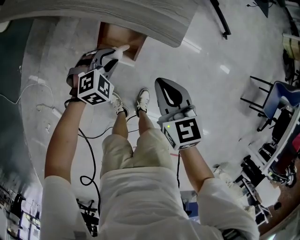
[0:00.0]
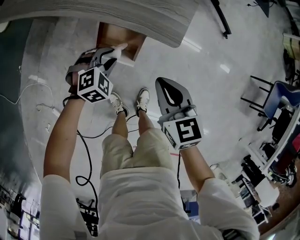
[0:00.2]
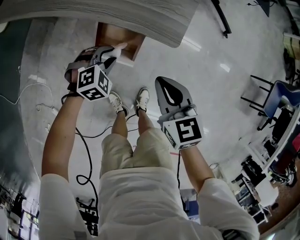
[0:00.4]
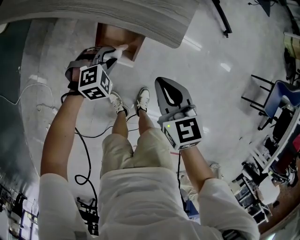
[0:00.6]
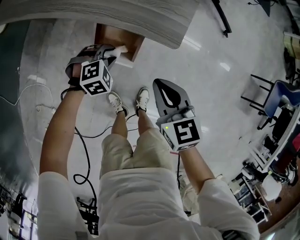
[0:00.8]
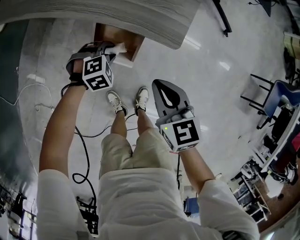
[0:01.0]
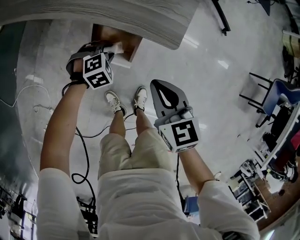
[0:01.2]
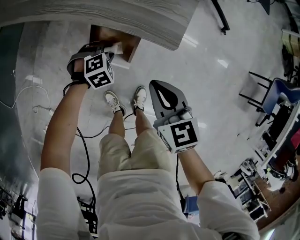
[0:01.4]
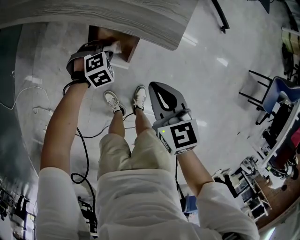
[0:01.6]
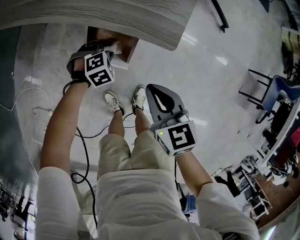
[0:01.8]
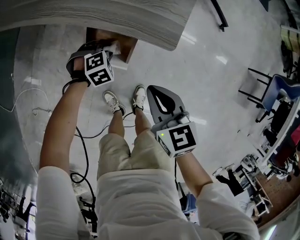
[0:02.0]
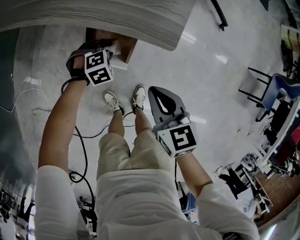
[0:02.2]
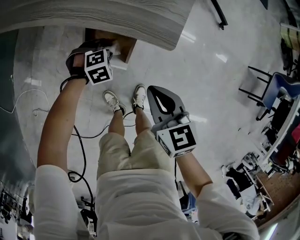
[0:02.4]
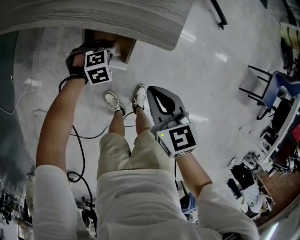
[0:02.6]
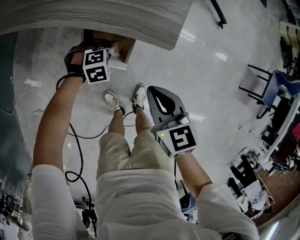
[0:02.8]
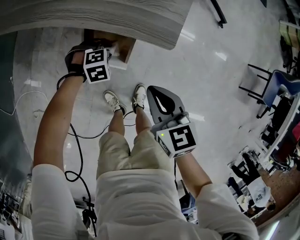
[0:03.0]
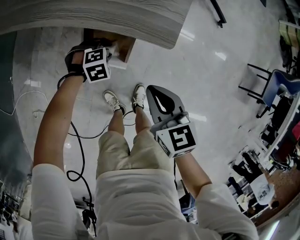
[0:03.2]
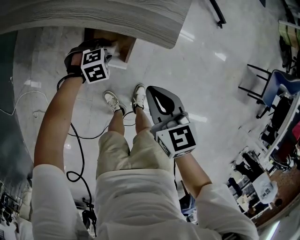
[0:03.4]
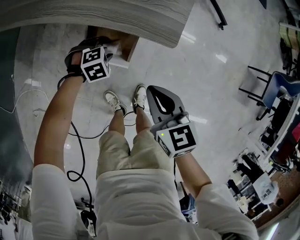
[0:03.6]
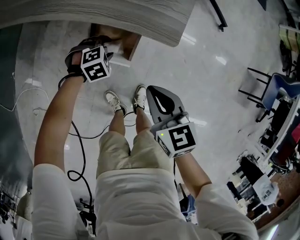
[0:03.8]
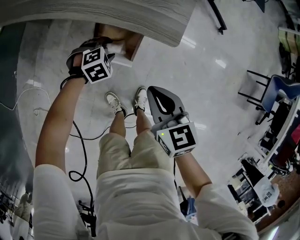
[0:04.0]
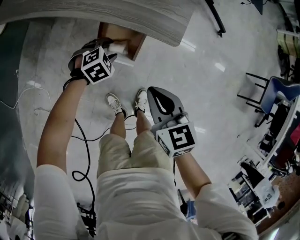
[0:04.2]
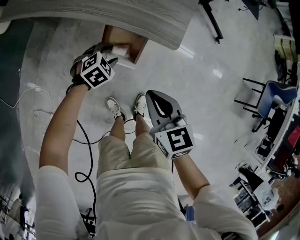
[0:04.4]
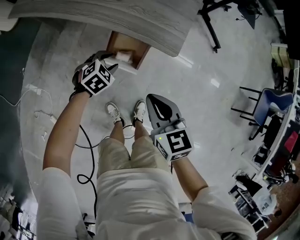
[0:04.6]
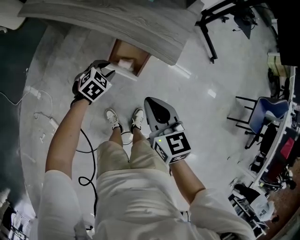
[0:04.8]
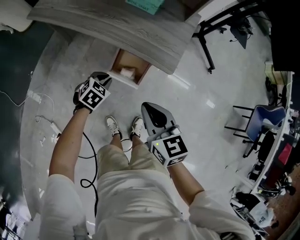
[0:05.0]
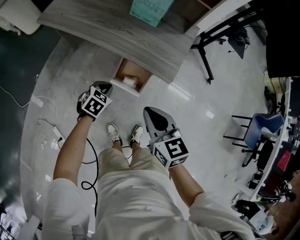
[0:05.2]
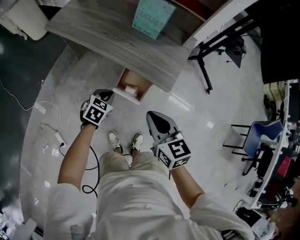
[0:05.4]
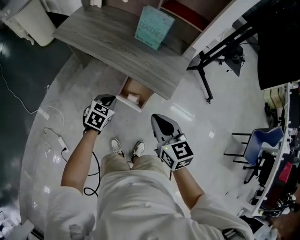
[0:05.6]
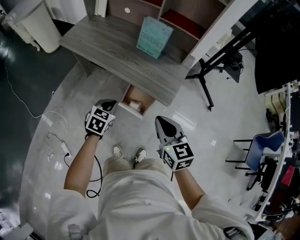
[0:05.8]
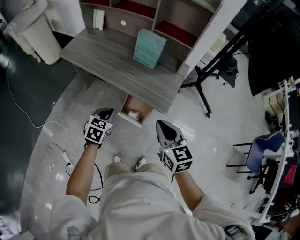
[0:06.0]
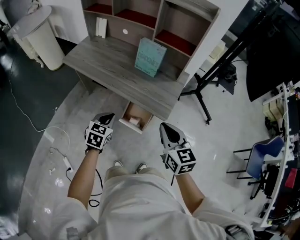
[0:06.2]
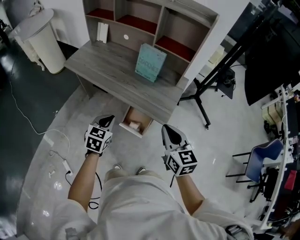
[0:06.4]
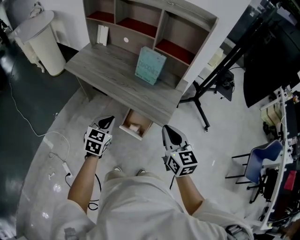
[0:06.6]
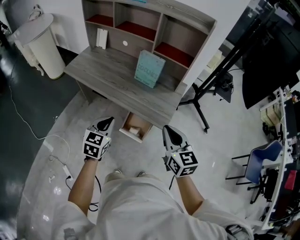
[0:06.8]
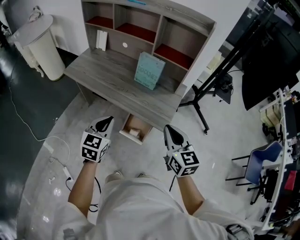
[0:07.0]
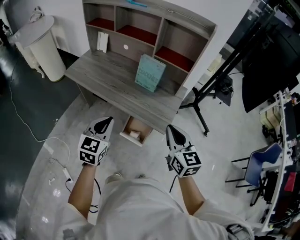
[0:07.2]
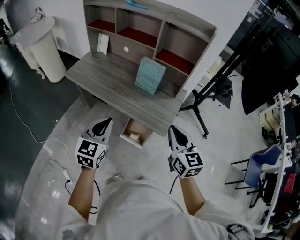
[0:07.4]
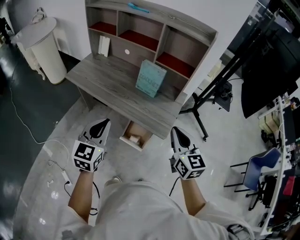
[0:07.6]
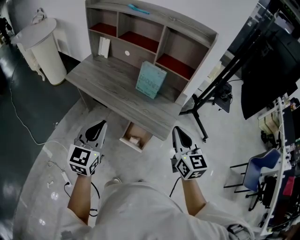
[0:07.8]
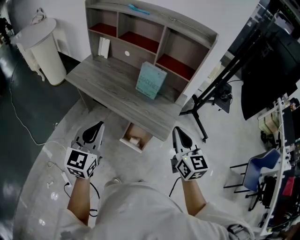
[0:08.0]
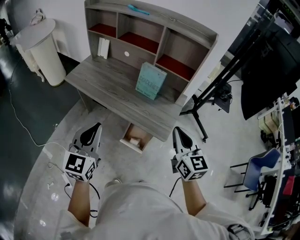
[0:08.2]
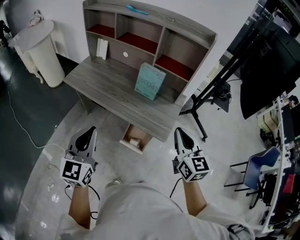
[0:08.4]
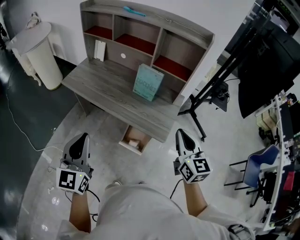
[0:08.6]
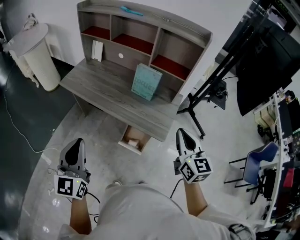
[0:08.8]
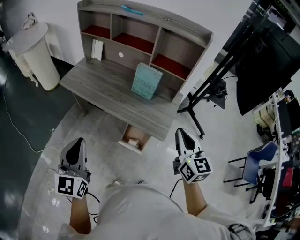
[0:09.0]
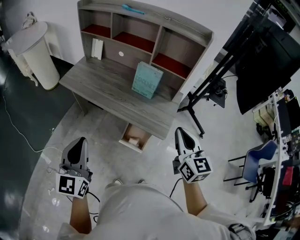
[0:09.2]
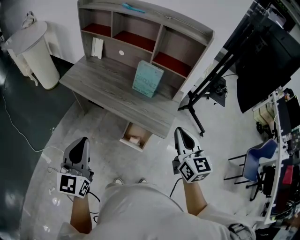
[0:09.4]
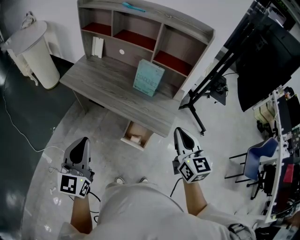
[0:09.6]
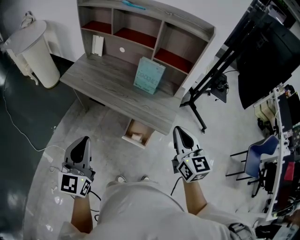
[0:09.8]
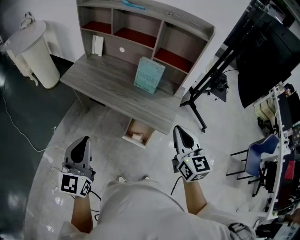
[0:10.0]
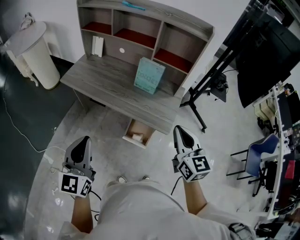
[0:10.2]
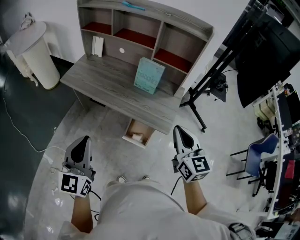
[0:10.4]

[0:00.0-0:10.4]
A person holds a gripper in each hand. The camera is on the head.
0.0 to 1.4 s: The left gripper moves downward, some 10 cm.
1.4 to 3.0 s: There are only small adjustments of the grippers.
3.0 to 4.4 s: The left gripper is displaced upward by some 10 cm, and turns by about 30 degrees. Meanwhile the right gripper shifts some 5 cm upward.
4.4 to 6.0 s: The two grippers go some 25 cm upward. The left gripper turns by roughly 50 degrees, and closes its fingers.
6.0 to 7.4 s: The left gripper moves upward, roughly 20 cm, and turns by about 20 degrees, while the right gripper goes some 10 cm upward and forward.
7.4 to 9.0 s: The left gripper is displaced to the left, upward and backward by some 15 cm.
9.0 to 10.4 s: The grippers stay close to where they were, moving slightly.

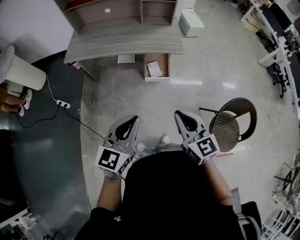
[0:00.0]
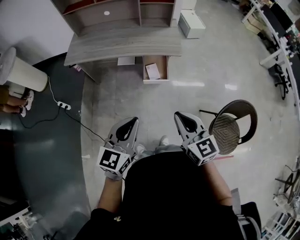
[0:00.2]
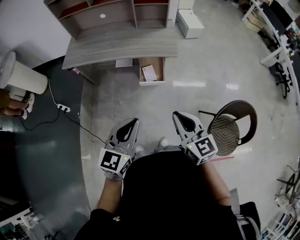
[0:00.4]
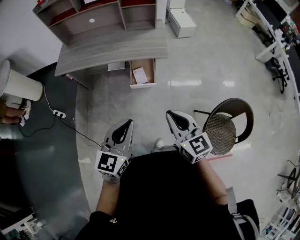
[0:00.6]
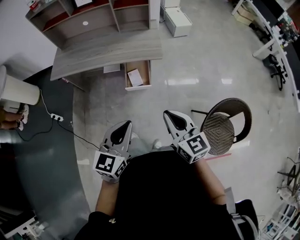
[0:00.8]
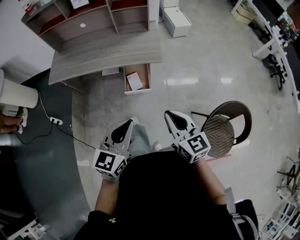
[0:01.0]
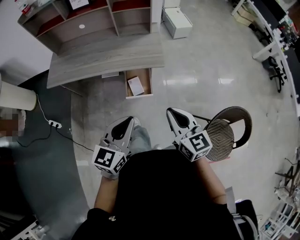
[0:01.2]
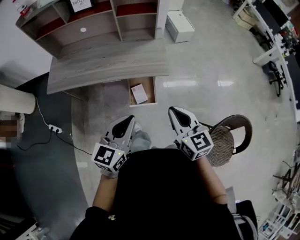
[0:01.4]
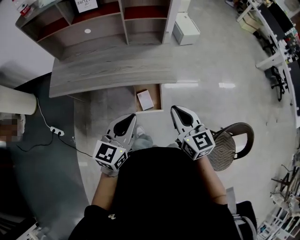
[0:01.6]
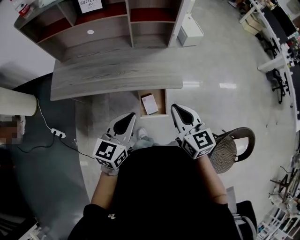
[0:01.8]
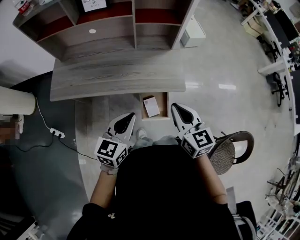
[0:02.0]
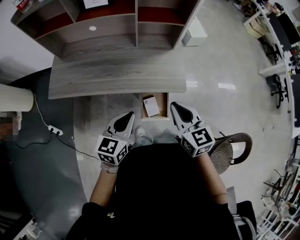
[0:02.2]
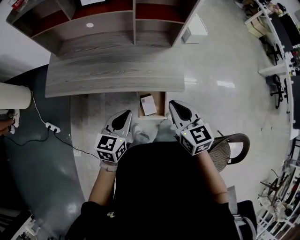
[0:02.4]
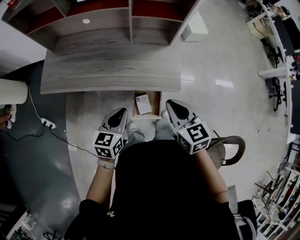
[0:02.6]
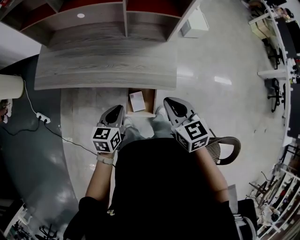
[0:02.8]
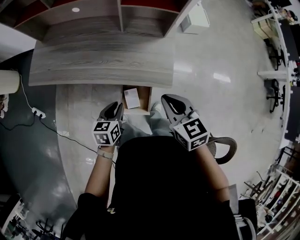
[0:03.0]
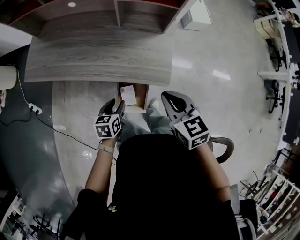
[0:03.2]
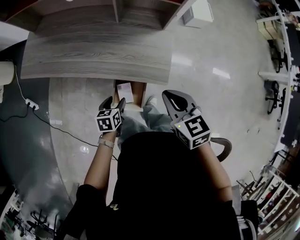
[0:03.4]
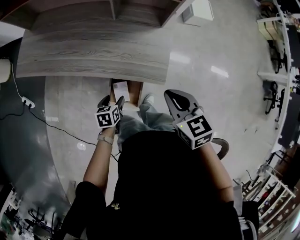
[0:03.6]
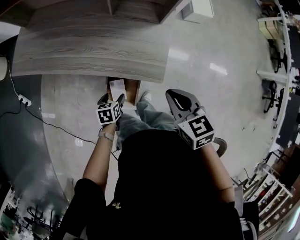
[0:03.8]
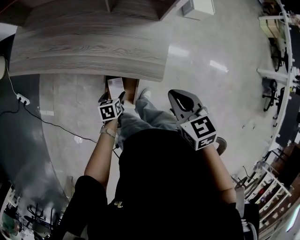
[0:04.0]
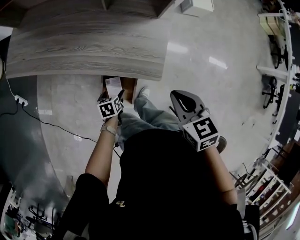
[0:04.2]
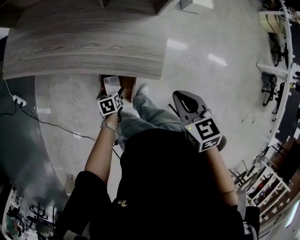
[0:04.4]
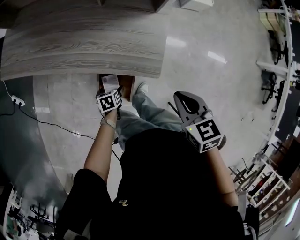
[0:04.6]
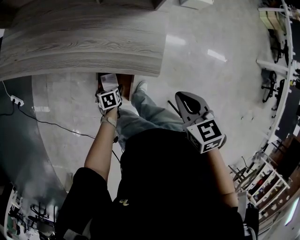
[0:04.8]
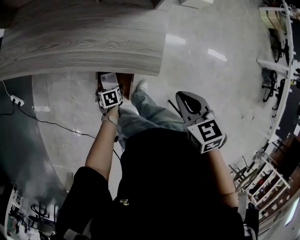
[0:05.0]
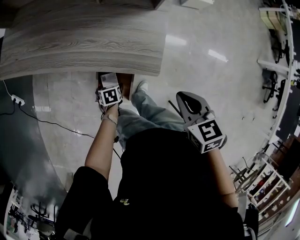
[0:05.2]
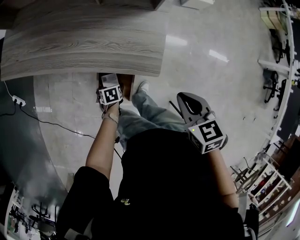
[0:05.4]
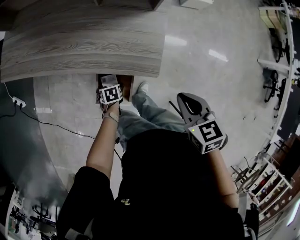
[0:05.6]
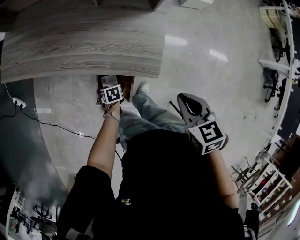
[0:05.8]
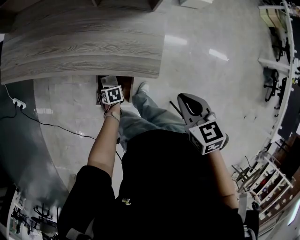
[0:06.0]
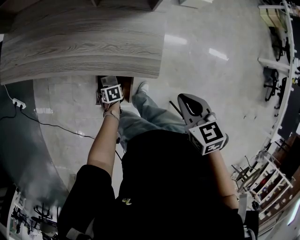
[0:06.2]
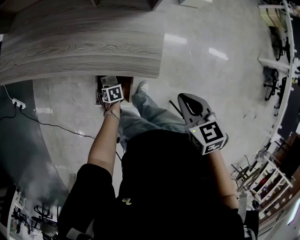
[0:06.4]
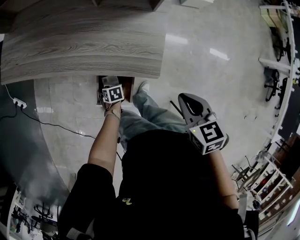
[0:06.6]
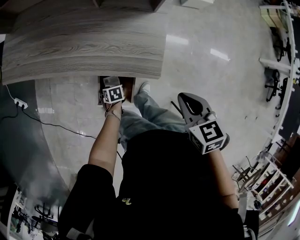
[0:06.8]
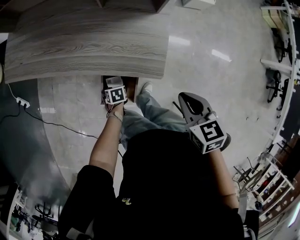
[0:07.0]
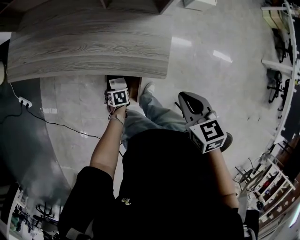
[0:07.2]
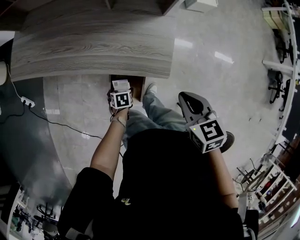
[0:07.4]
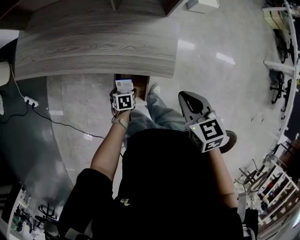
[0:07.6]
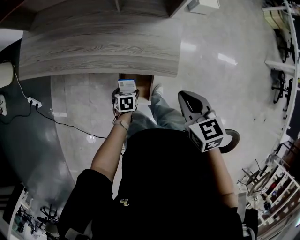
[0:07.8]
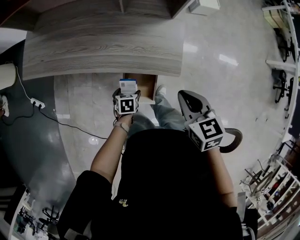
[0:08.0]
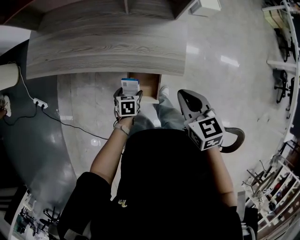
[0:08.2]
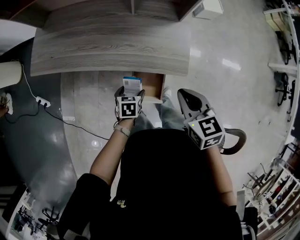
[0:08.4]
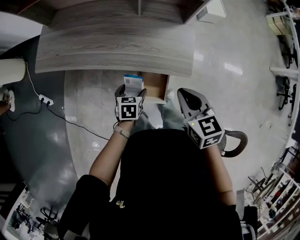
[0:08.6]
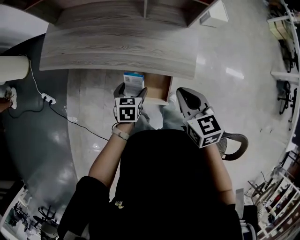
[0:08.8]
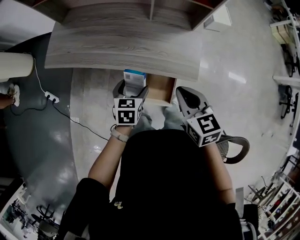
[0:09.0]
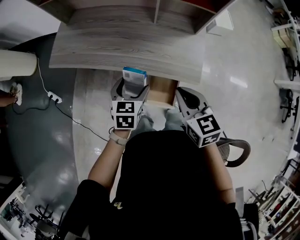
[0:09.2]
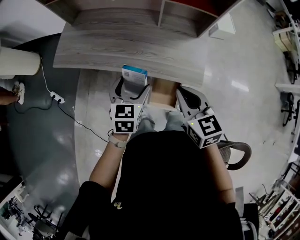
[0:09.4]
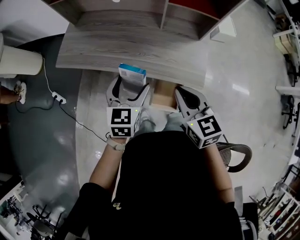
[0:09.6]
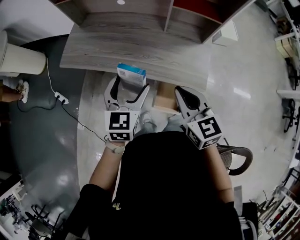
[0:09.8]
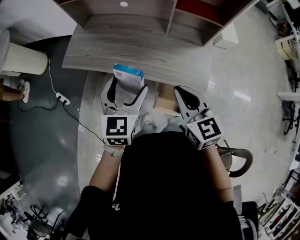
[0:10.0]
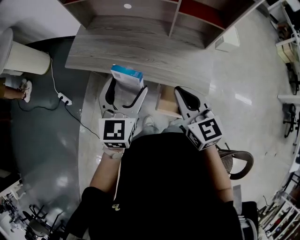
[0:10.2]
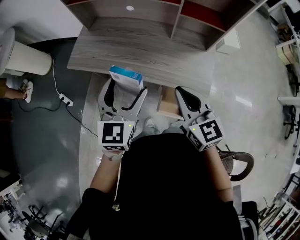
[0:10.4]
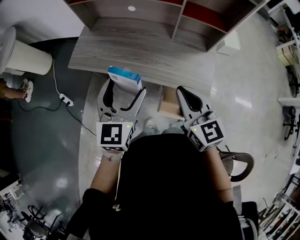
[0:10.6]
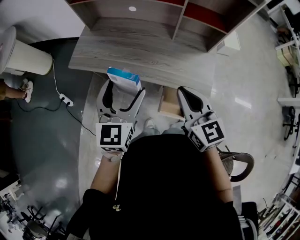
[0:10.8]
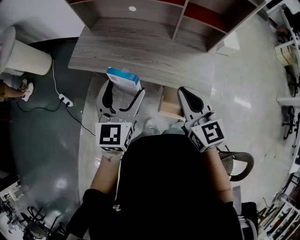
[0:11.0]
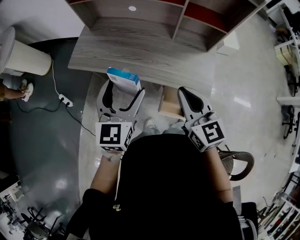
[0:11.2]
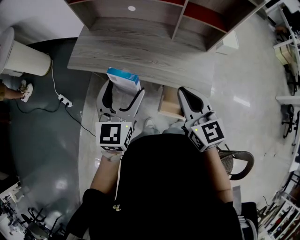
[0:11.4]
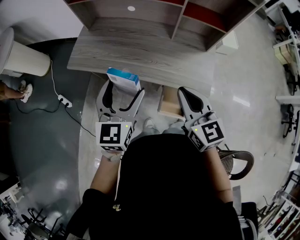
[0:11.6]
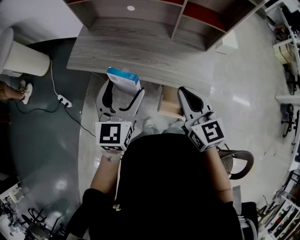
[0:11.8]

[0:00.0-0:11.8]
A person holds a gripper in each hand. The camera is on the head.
0.0 to 1.4 s: Both grippers travel together forward, about 25 cm.
1.4 to 3.0 s: The left gripper is displaced downward and forward by approximately 30 cm, and turns by approximately 40 degrees. Meanwhile the right gripper travels forward by approximately 25 cm, and changes its angle by about 30 degrees.
3.0 to 4.4 s: The left gripper goes some 25 cm downward, swivels some 30 degrees, and opens its fingers, while the right gripper heads to the right and downward, covering approximately 15 cm.
4.4 to 6.0 s: The left gripper heads downward, covering about 5 cm.
6.0 to 7.4 s: The right gripper moves approximately 5 cm, while the left gripper goes about 5 cm upward.
7.4 to 8.8 s: The left gripper shifts roughly 25 cm upward and to the left, and turns by approximately 30 degrees; the right gripper travels to the left and upward by about 15 cm.
8.8 to 10.4 s: The right gripper travels to the left and upward by approximately 15 cm, and rotates about 20 degrees; the left gripper goes approximately 30 cm upward and to the left, and points its fingers roughly 40 degrees further upward.
10.4 to 11.8 s: There are only small adjustments of the grippers.

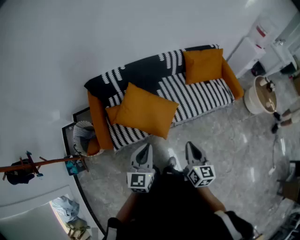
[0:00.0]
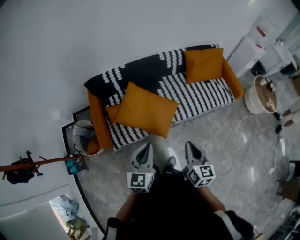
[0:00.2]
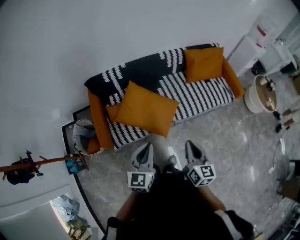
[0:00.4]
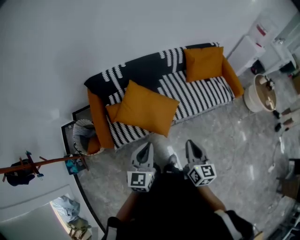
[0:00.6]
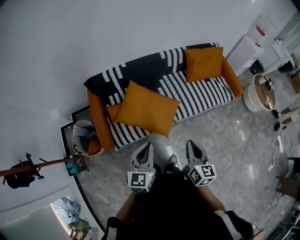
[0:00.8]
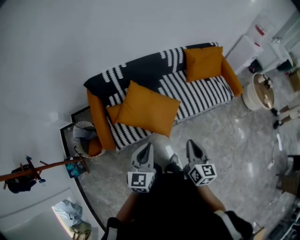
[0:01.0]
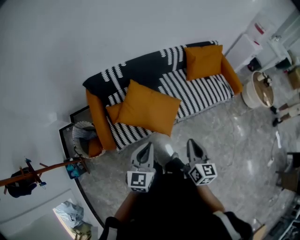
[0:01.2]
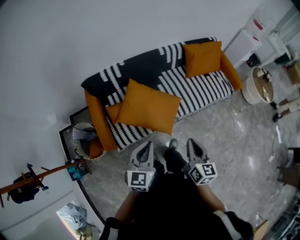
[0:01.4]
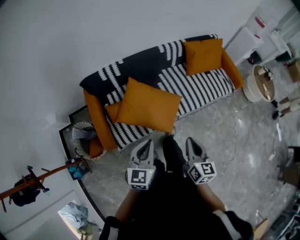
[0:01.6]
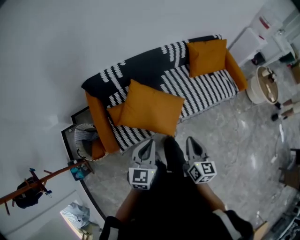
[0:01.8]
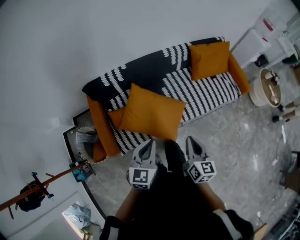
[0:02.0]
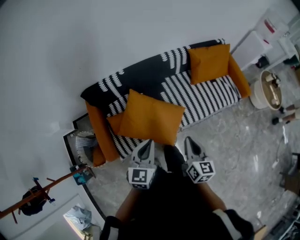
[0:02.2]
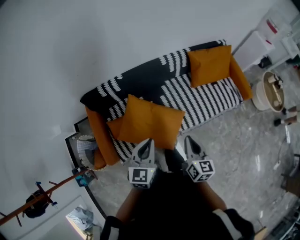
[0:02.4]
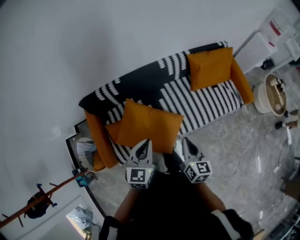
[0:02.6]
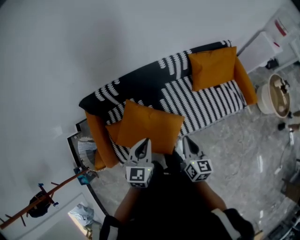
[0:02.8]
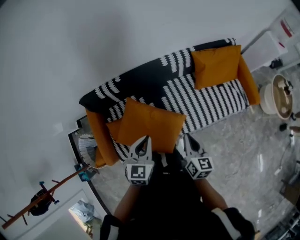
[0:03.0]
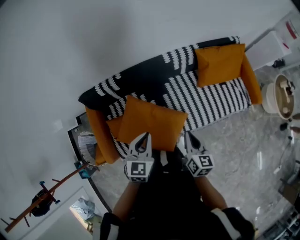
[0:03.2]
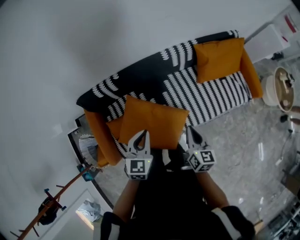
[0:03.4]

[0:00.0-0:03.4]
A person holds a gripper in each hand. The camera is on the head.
0.0 to 1.6 s: The two grippers go about 5 cm to the left.
1.6 to 3.4 s: Both grippers move forward, roughly 30 cm.
